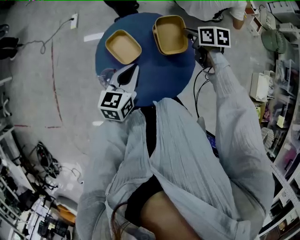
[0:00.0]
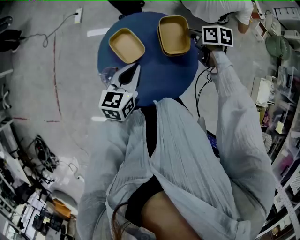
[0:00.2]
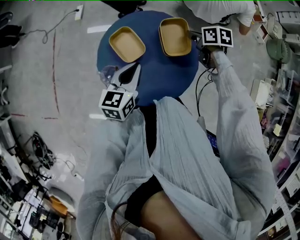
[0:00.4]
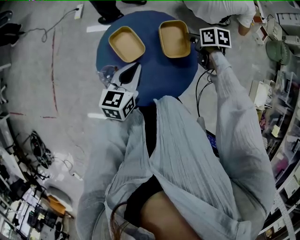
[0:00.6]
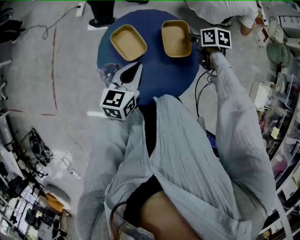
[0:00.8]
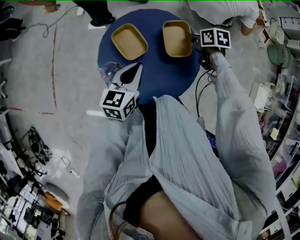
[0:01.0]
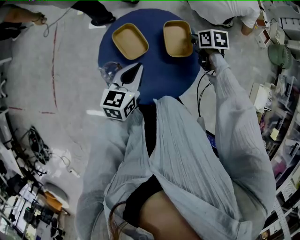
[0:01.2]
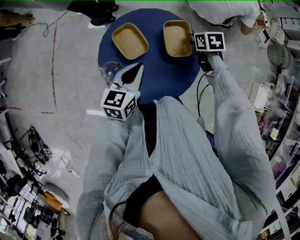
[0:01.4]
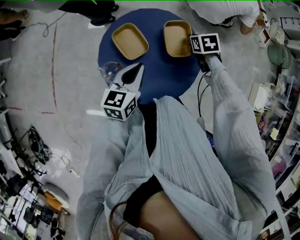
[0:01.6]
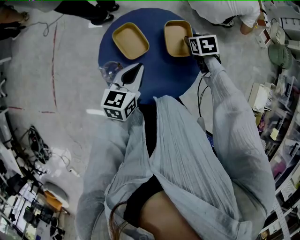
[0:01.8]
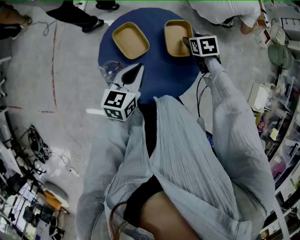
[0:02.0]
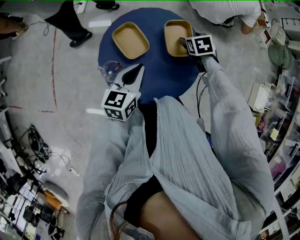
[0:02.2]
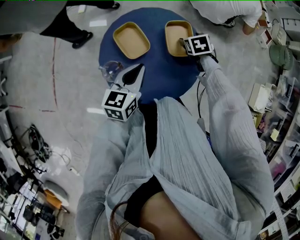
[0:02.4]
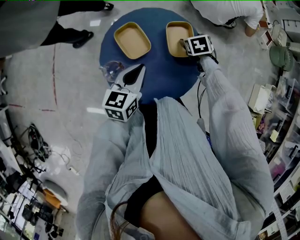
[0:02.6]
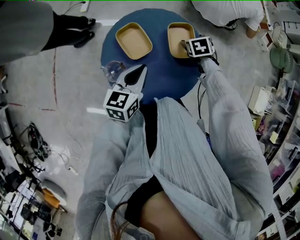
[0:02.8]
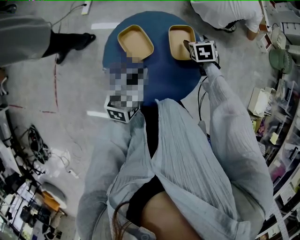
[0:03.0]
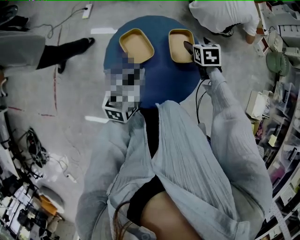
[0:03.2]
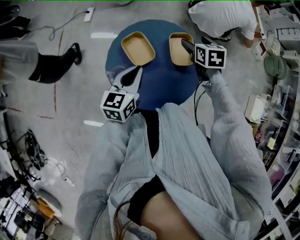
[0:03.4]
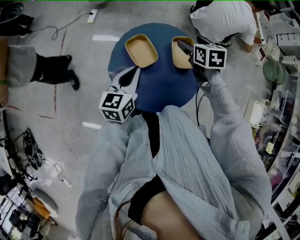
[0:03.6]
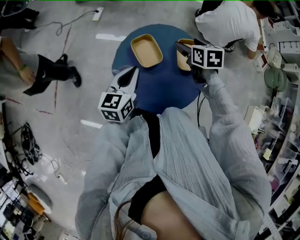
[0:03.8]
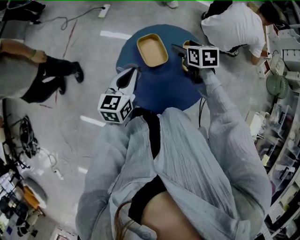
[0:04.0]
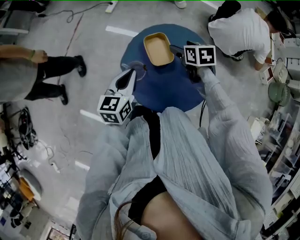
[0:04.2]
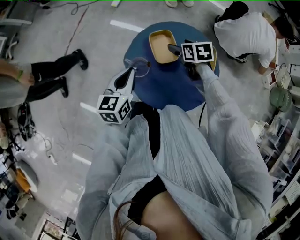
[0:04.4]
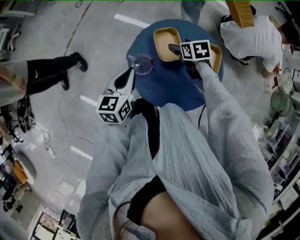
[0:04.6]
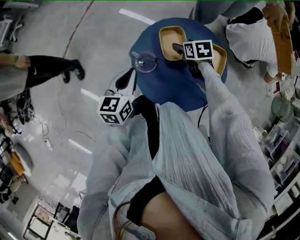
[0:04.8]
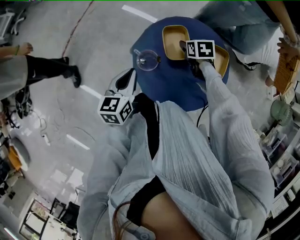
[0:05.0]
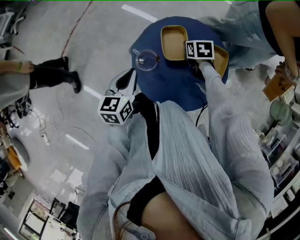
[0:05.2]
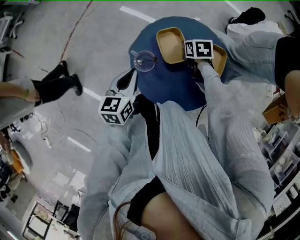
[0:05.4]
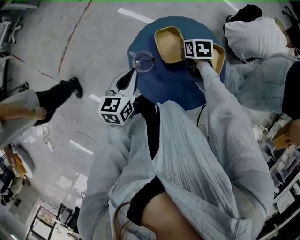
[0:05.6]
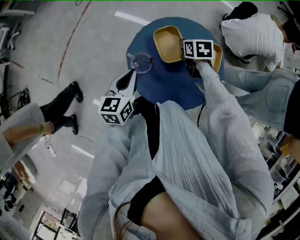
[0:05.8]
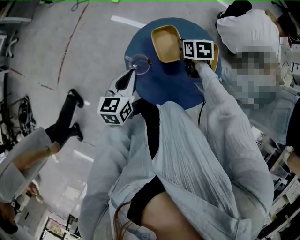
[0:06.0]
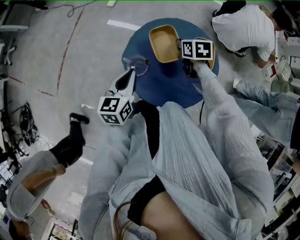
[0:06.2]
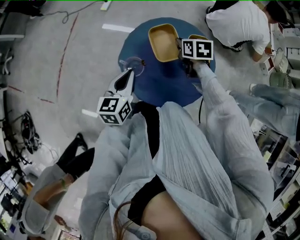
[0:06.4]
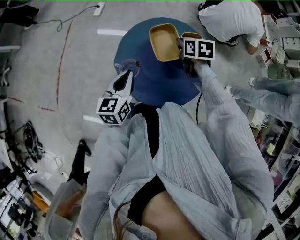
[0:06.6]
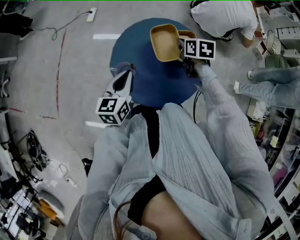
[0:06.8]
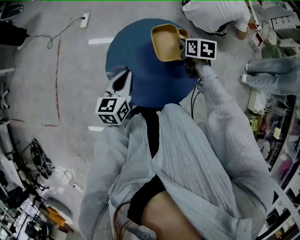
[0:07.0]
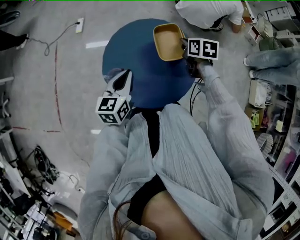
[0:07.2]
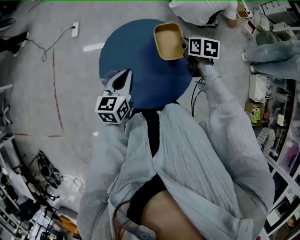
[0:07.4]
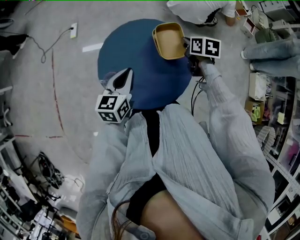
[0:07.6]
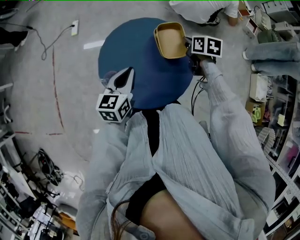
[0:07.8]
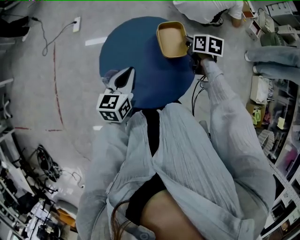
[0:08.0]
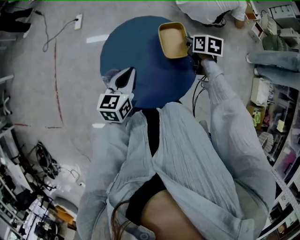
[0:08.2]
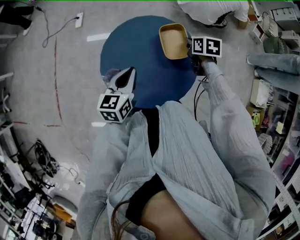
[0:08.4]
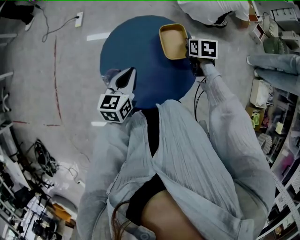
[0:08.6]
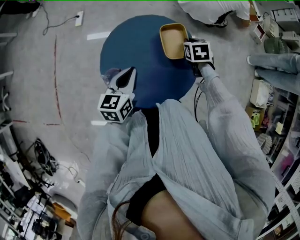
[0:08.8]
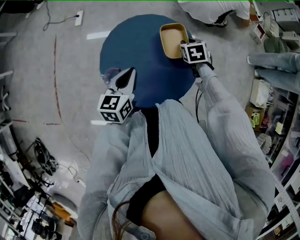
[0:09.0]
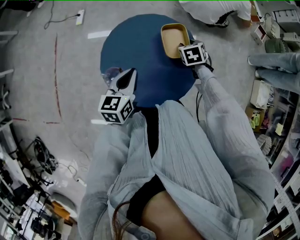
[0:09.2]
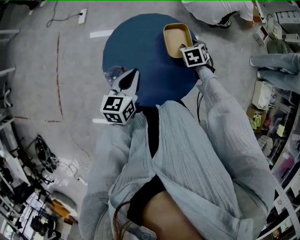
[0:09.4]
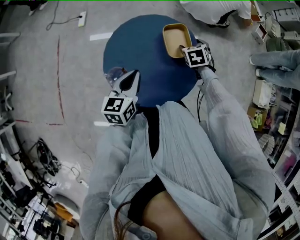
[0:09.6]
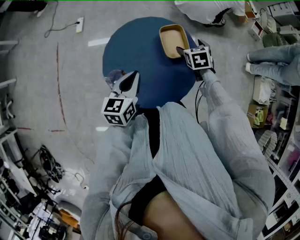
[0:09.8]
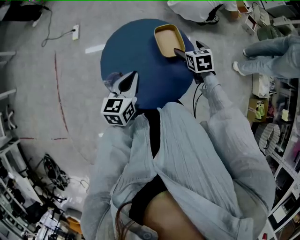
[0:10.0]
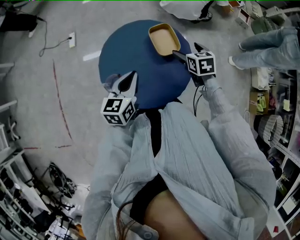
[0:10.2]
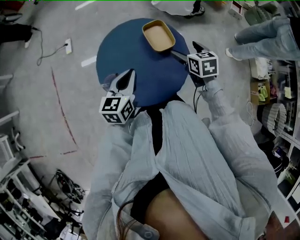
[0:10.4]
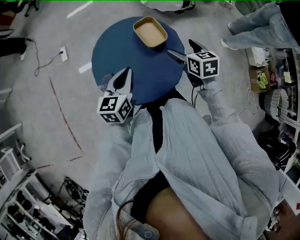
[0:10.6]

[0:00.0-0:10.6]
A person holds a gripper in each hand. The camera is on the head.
0:00.0 to 0:01.6: The right gripper is displaced downward by some 5 cm, and turns by approximately 30 degrees.
0:01.6 to 0:03.0: The right gripper opens its fingers.
0:03.0 to 0:04.6: The right gripper reaches roughly 10 cm upward, then returns, and turns by roughly 30 degrees, while the left gripper shifts by some 15 cm, and turns by about 30 degrees.
0:04.6 to 0:06.0: The right gripper closes up.
0:06.0 to 0:07.6: The right gripper moves about 20 cm, and changes its angle by about 30 degrees. The left gripper changes place by roughly 10 cm, and swivels approximately 30 degrees.
0:07.6 to 0:09.0: The right gripper changes its angle by approximately 30 degrees.
0:09.0 to 0:10.6: The right gripper shifts approximately 15 cm backward and upward, turns by some 30 degrees, and opens.

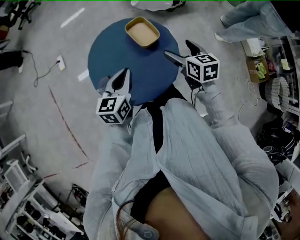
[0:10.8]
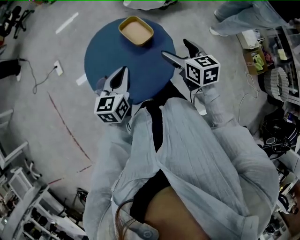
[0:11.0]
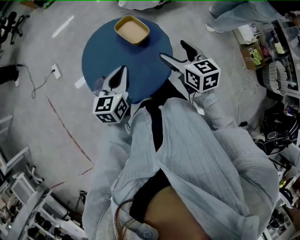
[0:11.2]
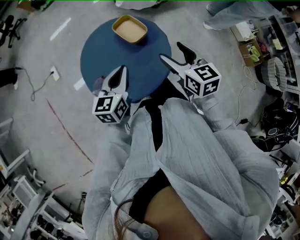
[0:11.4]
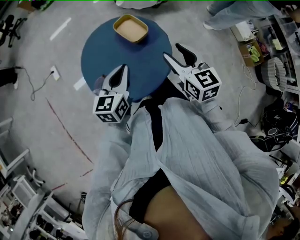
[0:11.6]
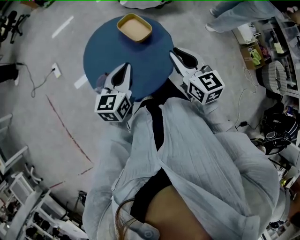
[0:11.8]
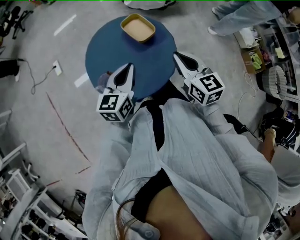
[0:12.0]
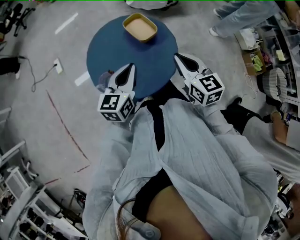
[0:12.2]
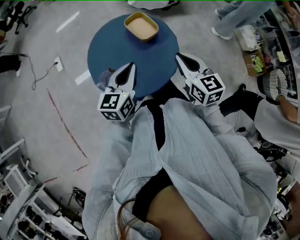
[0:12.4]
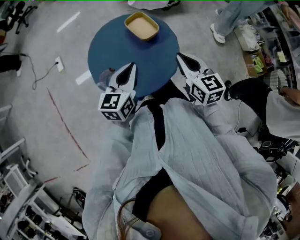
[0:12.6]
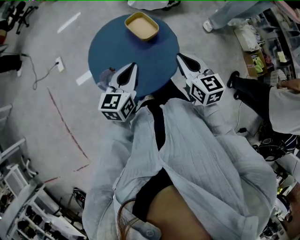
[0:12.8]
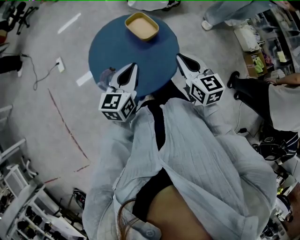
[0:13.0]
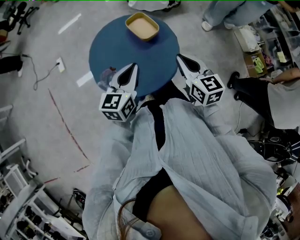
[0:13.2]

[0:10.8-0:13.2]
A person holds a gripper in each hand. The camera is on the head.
0:10.8 to 0:12.0: The right gripper travels backward and upward by about 10 cm, and closes up.
0:12.0 to 0:13.2: The grippers stay close to where they were, moving slightly.

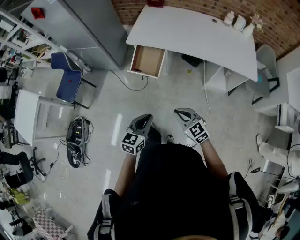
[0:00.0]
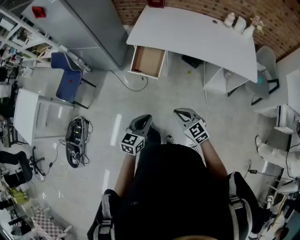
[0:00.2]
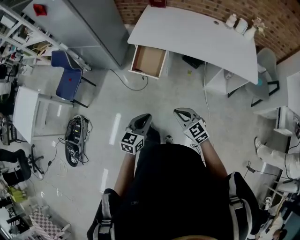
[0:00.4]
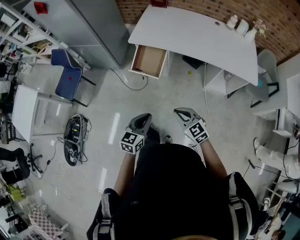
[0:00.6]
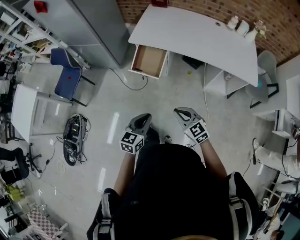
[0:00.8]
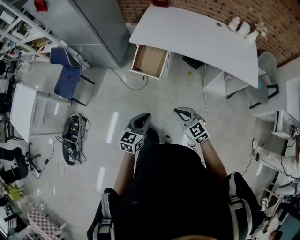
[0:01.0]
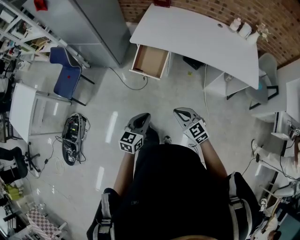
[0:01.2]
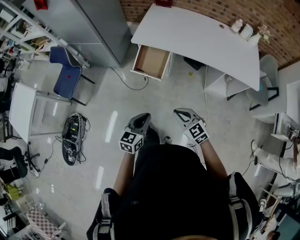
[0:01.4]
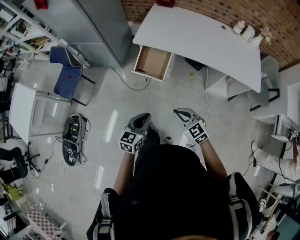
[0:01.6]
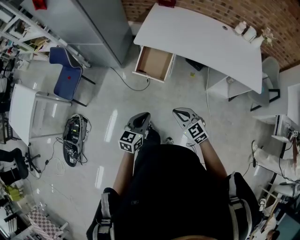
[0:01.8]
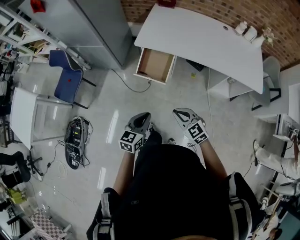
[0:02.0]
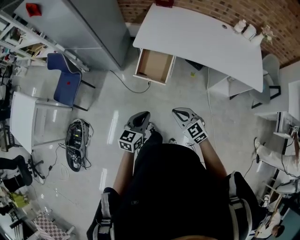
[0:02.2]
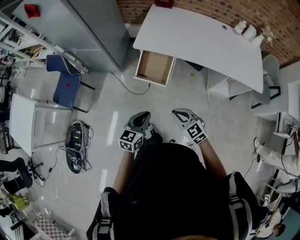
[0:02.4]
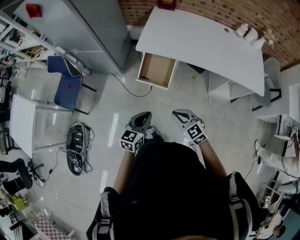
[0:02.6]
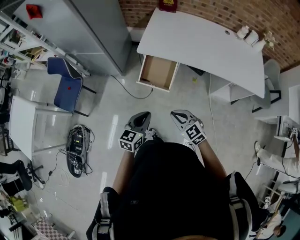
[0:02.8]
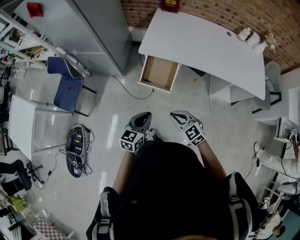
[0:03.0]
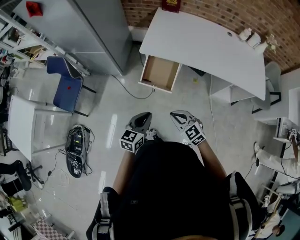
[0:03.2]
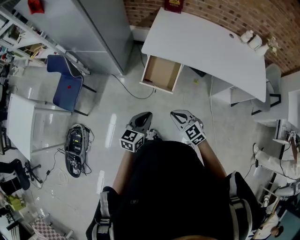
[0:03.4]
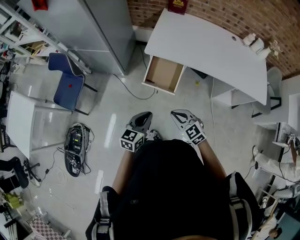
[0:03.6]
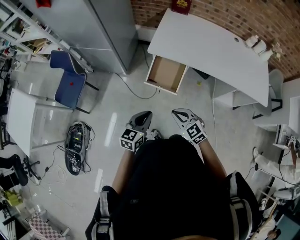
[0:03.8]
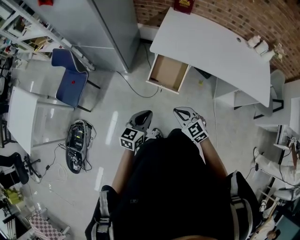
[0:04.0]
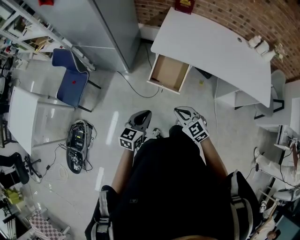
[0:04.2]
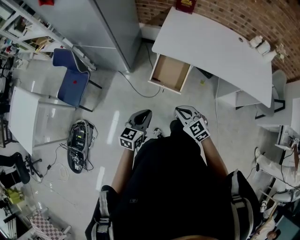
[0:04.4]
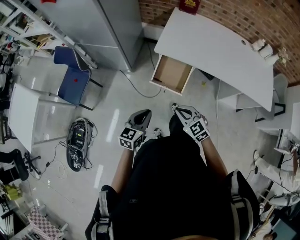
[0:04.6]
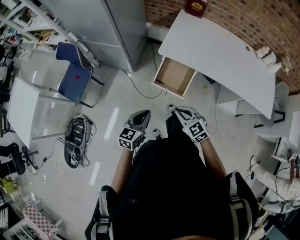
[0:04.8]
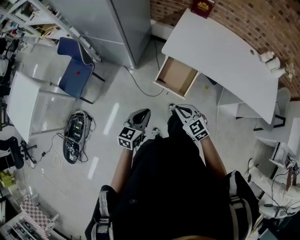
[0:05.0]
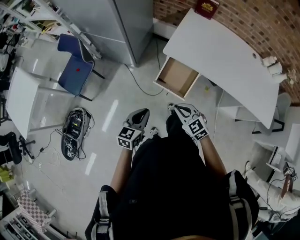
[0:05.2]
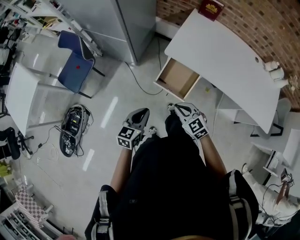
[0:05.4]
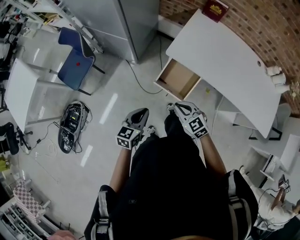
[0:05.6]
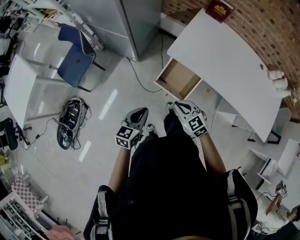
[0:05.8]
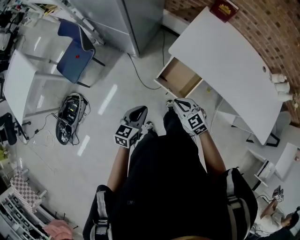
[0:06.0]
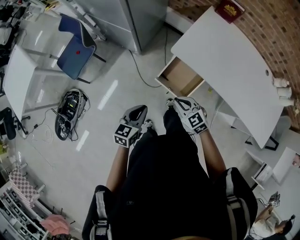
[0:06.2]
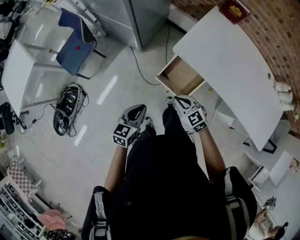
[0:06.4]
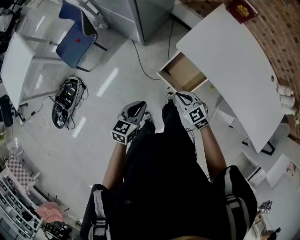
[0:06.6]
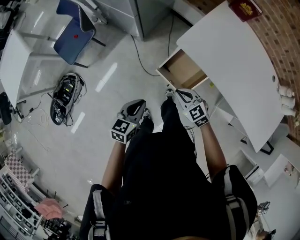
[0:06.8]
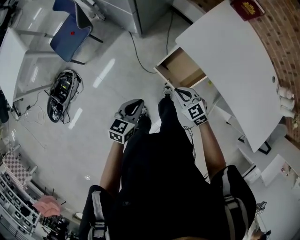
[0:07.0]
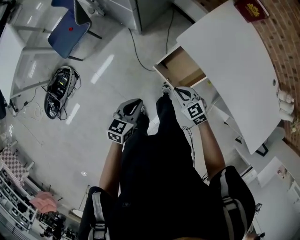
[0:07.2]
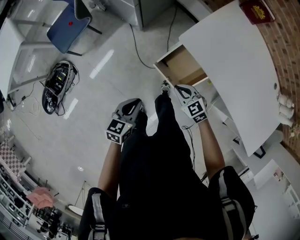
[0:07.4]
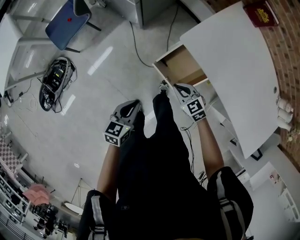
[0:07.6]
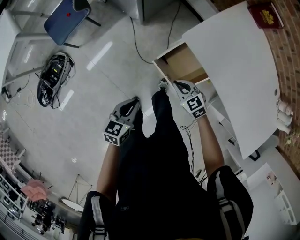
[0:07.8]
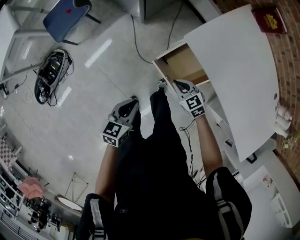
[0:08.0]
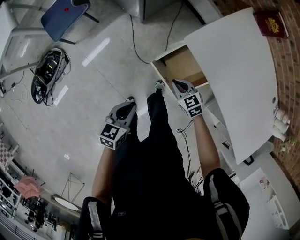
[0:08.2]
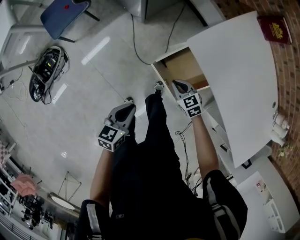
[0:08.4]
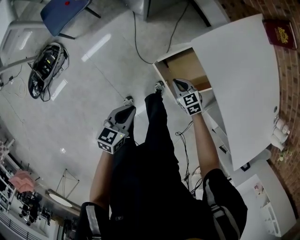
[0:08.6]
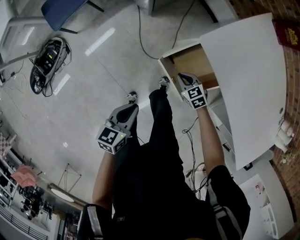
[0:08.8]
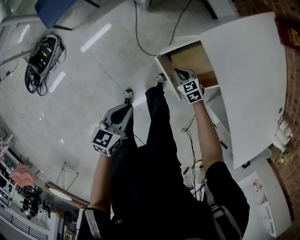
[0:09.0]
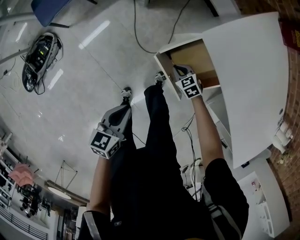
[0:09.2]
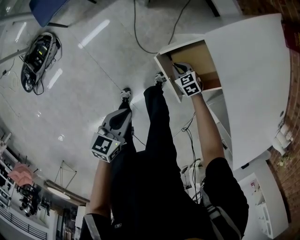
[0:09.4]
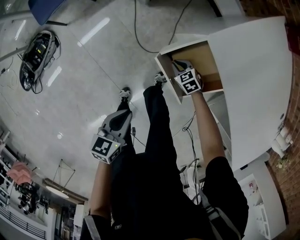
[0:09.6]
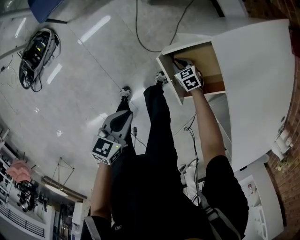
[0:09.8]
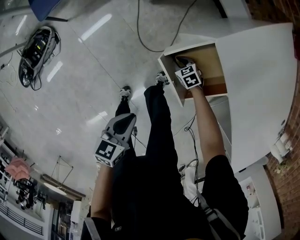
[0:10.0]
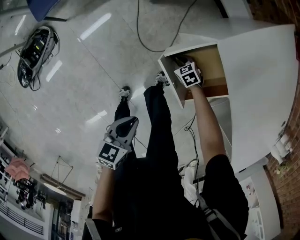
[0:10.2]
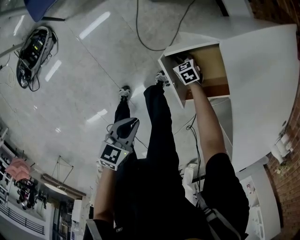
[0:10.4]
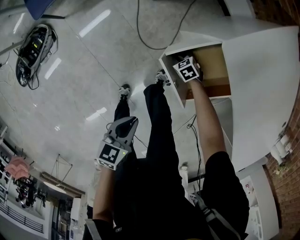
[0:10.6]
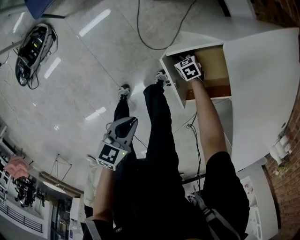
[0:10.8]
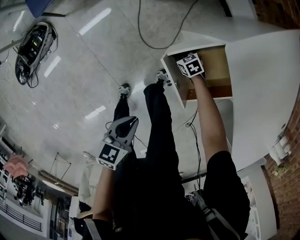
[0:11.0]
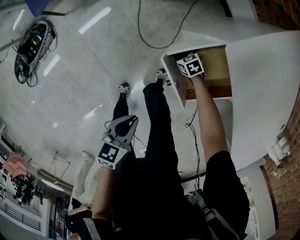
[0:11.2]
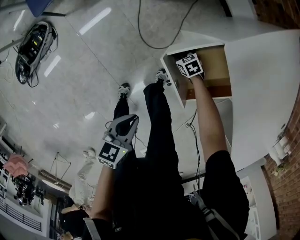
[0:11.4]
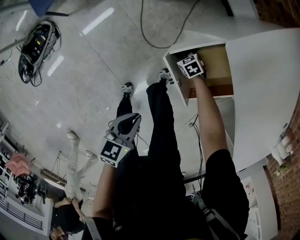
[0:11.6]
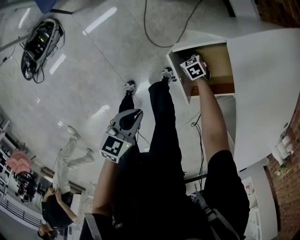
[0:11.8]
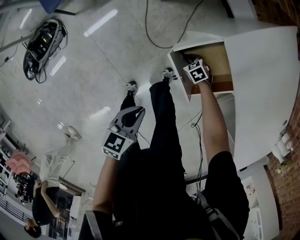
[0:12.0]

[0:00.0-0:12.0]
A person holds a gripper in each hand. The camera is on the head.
0:00.0 to 0:01.6: The left gripper is displaced forward and to the left by approximately 5 cm. The right gripper goes some 5 cm forward.
0:01.6 to 0:03.0: The grippers both shift forward and to the left by approximately 15 cm.
0:03.0 to 0:04.4: The left gripper shifts approximately 5 cm to the left; the right gripper moves some 5 cm.
0:04.4 to 0:06.0: The left gripper moves forward, about 10 cm, while the right gripper shifts some 15 cm forward.
0:06.0 to 0:07.6: The left gripper moves downward, some 10 cm. The right gripper heads downward and forward, covering about 15 cm.
0:07.6 to 0:09.0: The left gripper shifts about 5 cm downward; the right gripper heads downward, covering about 20 cm.
0:09.0 to 0:10.4: The right gripper goes roughly 15 cm downward. The left gripper moves downward, some 5 cm.
0:10.4 to 0:12.0: The grippers stay close to where they were, moving slightly.
